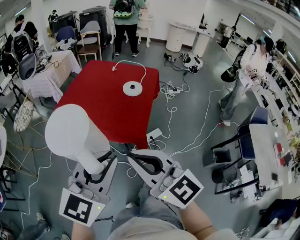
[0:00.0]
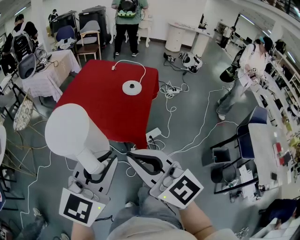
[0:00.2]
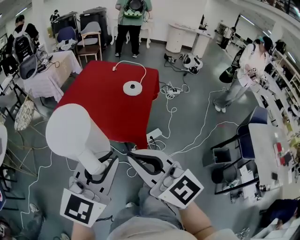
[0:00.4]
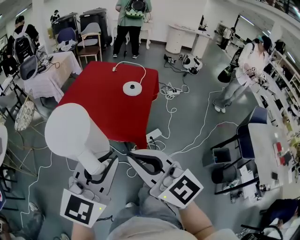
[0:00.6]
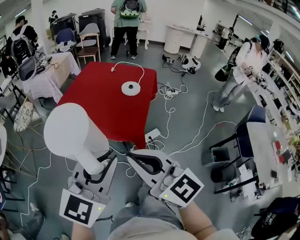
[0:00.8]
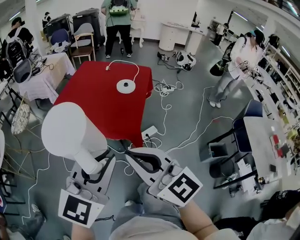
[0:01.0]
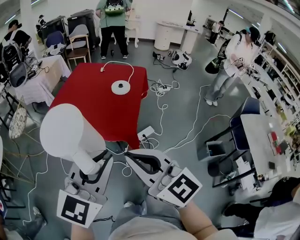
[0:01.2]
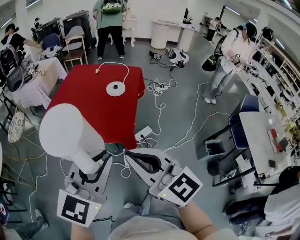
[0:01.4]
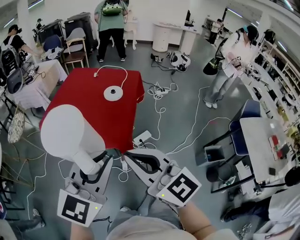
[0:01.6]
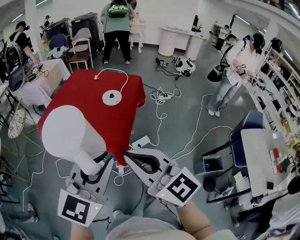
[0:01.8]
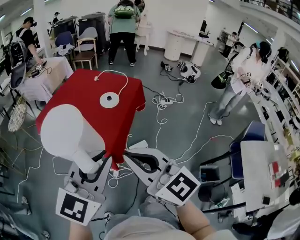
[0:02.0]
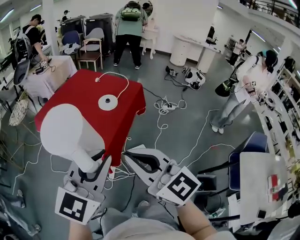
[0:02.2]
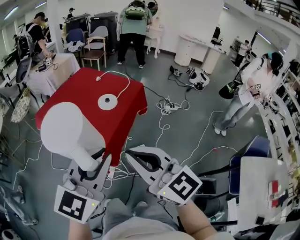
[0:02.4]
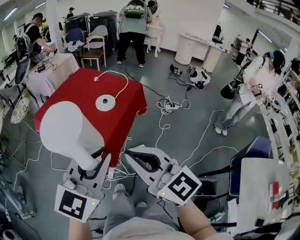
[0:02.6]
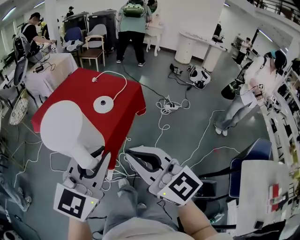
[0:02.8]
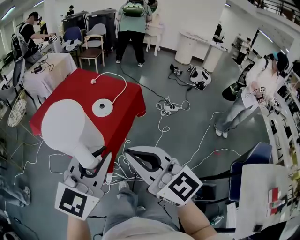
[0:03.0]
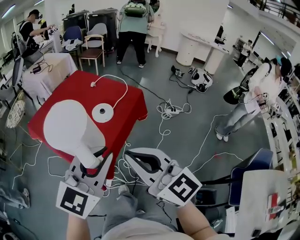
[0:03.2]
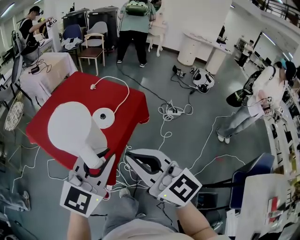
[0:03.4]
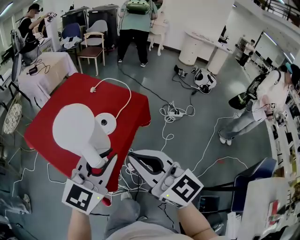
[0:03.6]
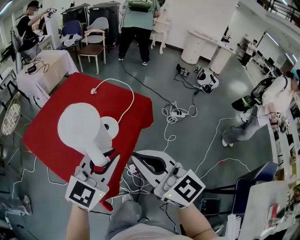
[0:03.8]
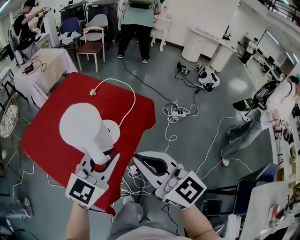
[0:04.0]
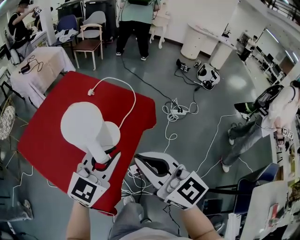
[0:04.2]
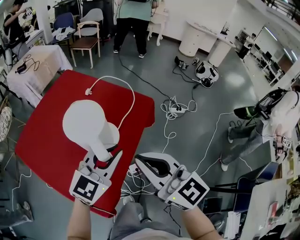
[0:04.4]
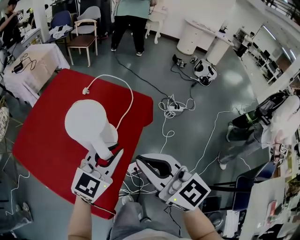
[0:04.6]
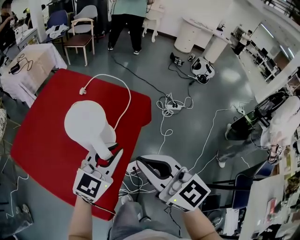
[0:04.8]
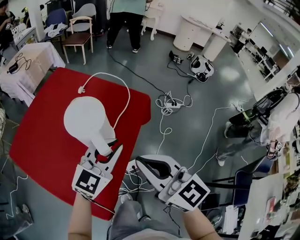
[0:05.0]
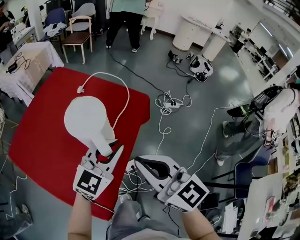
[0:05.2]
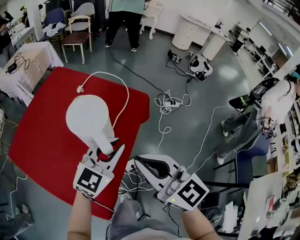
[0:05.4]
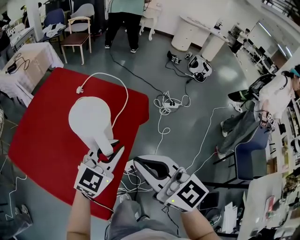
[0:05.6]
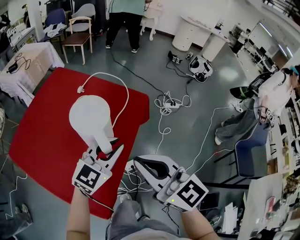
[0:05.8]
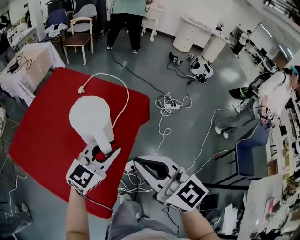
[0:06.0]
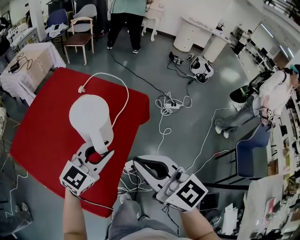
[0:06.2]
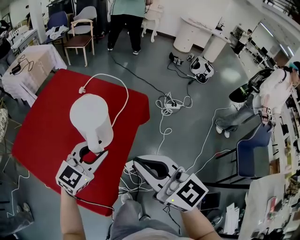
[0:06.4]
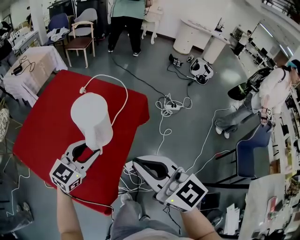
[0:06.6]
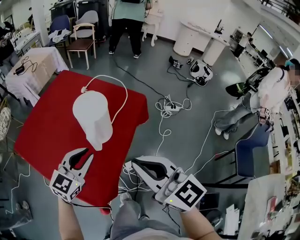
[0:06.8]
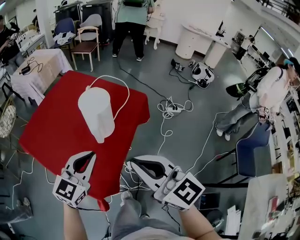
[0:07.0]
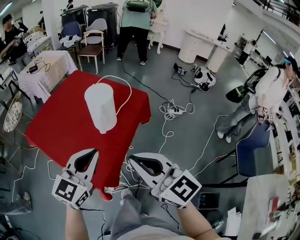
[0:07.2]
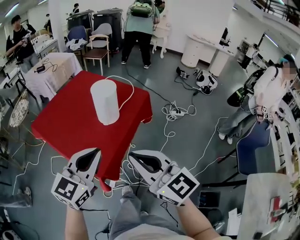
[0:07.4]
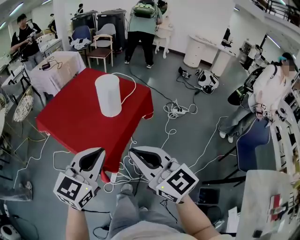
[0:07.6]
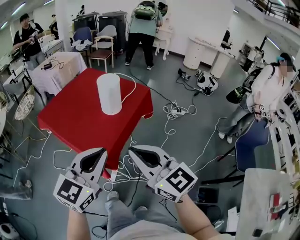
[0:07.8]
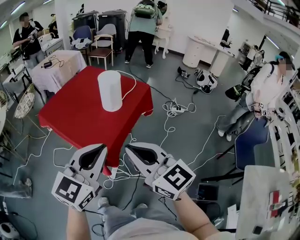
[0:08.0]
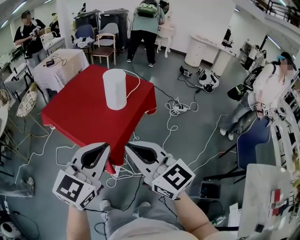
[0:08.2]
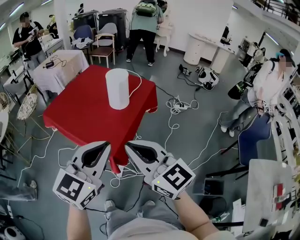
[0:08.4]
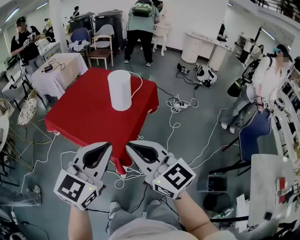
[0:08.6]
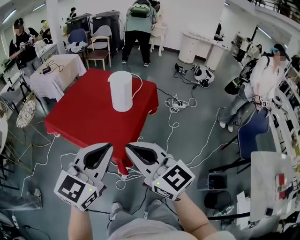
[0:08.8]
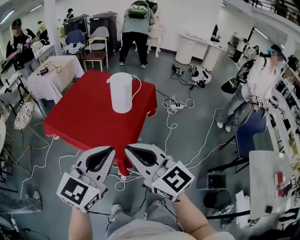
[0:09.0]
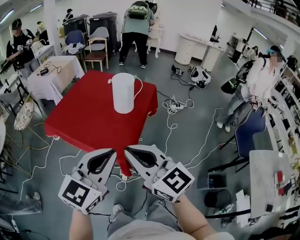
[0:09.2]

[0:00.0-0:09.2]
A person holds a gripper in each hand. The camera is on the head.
0:00.0 to 0:01.6: The two grippers go roughly 10 cm to the right.
0:01.6 to 0:03.0: Both grippers travel together to the right and forward, about 25 cm.
0:03.0 to 0:04.6: The left gripper shifts about 35 cm forward and downward. The right gripper heads forward, covering approximately 30 cm.
0:04.6 to 0:06.2: The grippers stay close to where they were, moving slightly.
0:06.2 to 0:07.6: The right gripper travels backward by approximately 25 cm. Meanwhile the left gripper heads backward and upward, covering some 35 cm, changes its angle by some 20 degrees, and closes.
0:07.6 to 0:09.2: The left gripper heads to the left and backward, covering about 10 cm. Meanwhile the right gripper travels to the left by about 15 cm.

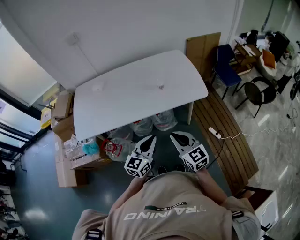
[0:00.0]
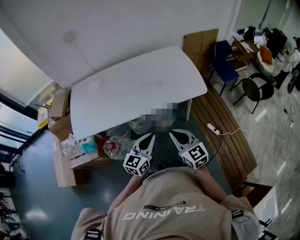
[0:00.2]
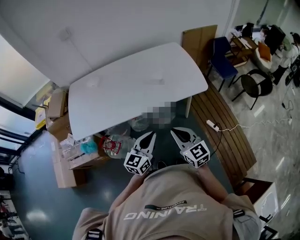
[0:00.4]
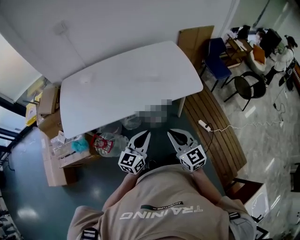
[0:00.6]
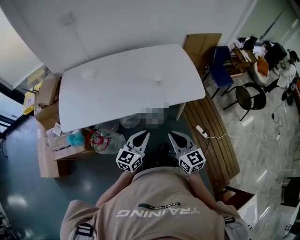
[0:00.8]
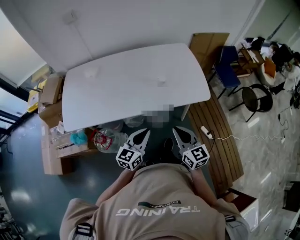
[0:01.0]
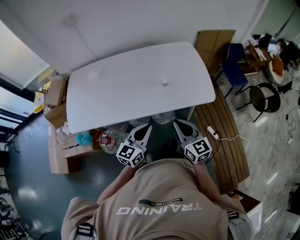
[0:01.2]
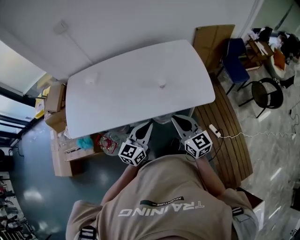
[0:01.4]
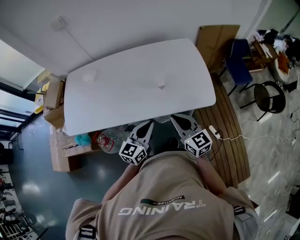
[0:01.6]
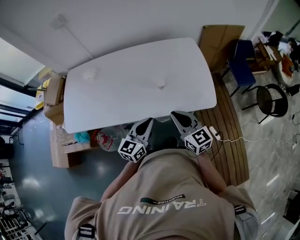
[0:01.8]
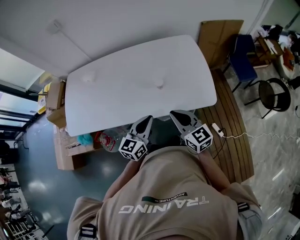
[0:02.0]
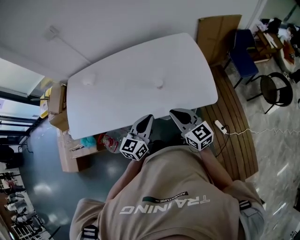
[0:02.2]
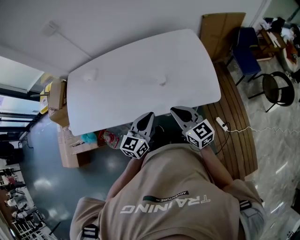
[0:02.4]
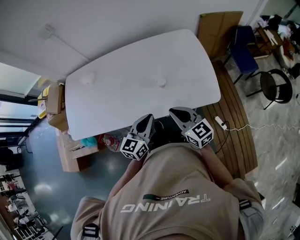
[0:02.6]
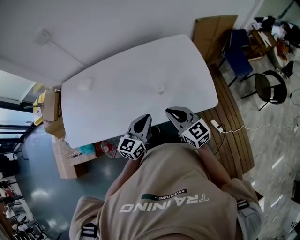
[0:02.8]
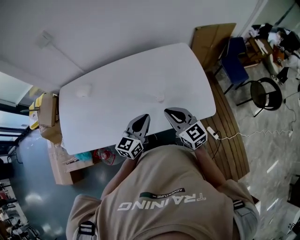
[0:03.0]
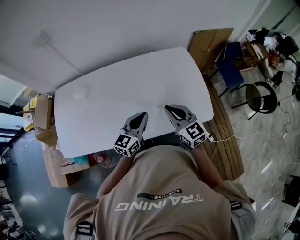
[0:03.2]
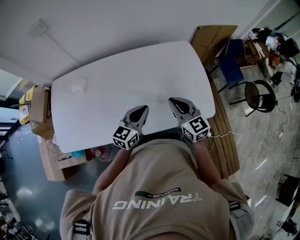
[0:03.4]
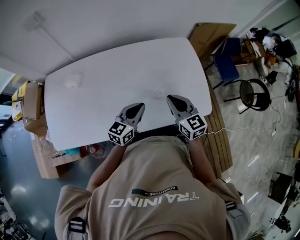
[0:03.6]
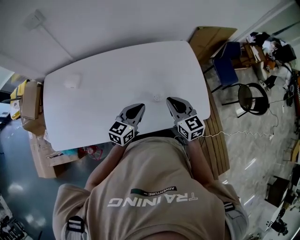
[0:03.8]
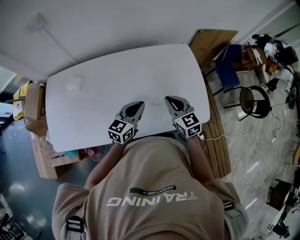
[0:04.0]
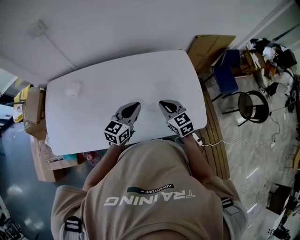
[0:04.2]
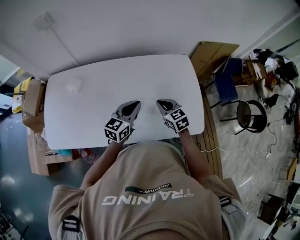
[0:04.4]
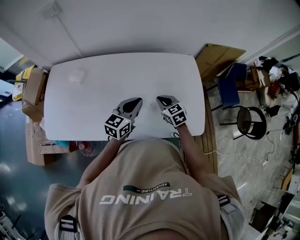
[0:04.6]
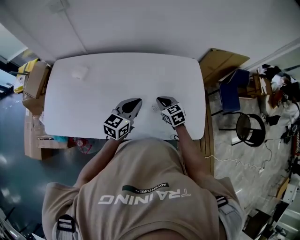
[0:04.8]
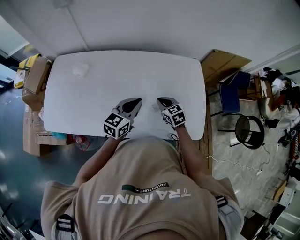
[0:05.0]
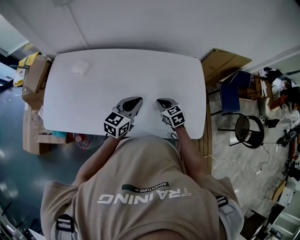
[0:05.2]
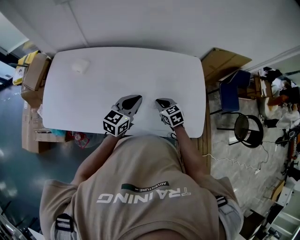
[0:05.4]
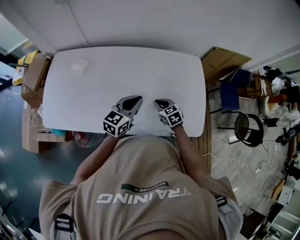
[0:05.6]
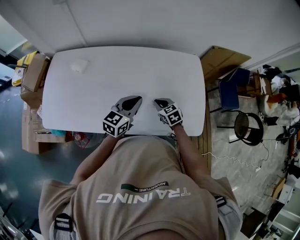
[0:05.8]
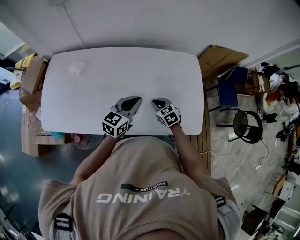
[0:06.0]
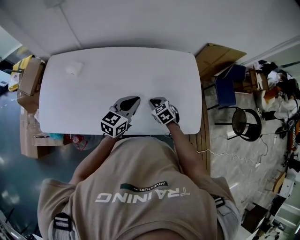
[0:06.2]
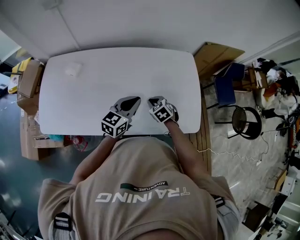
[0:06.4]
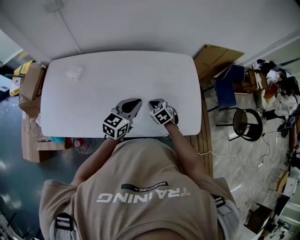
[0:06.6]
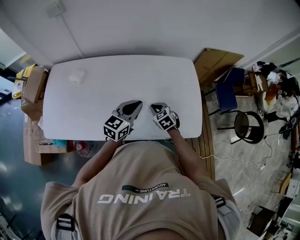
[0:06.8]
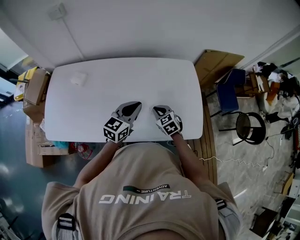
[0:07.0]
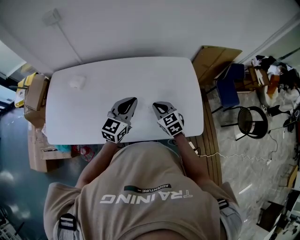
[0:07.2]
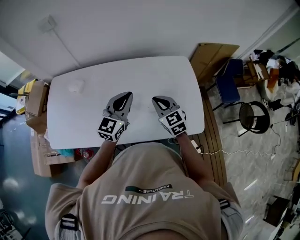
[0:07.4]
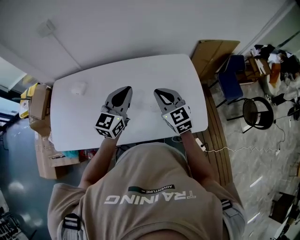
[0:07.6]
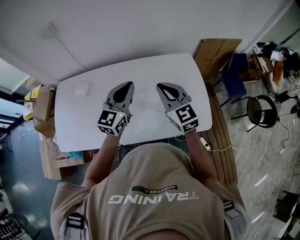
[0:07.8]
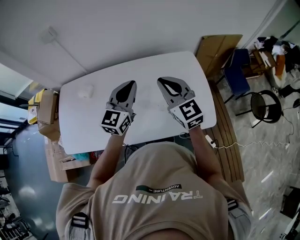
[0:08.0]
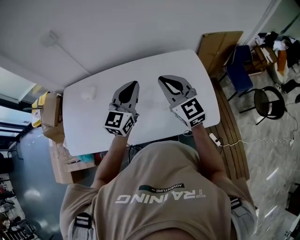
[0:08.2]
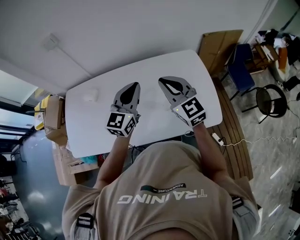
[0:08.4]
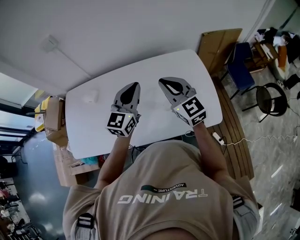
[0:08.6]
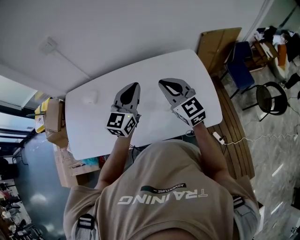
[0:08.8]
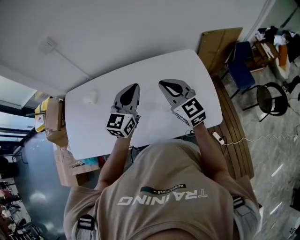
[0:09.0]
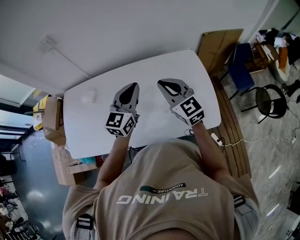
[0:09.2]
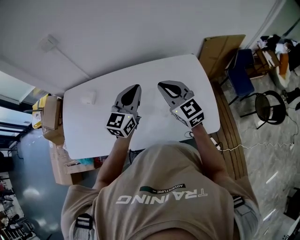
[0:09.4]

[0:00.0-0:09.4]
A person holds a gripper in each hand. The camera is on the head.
0:00.0 to 0:01.6: Both grippers move forward, some 20 cm.
0:01.6 to 0:03.2: Both grippers move forward, roughly 20 cm.
0:03.2 to 0:04.8: The right gripper moves downward and forward, approximately 20 cm, and rotates about 30 degrees; the left gripper heads forward, covering about 10 cm.
0:04.8 to 0:06.2: The right gripper moves about 5 cm.
0:06.2 to 0:07.8: The right gripper heads upward, covering approximately 25 cm, and tilts its fingers about 40 degrees upward, while the left gripper is displaced upward by some 15 cm, and rotates some 20 degrees.
0:07.8 to 0:09.4: The grippers make only small movements.

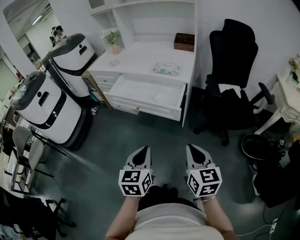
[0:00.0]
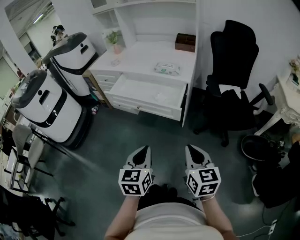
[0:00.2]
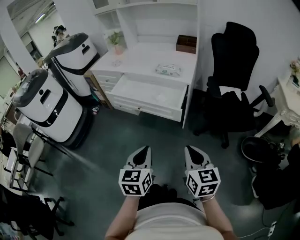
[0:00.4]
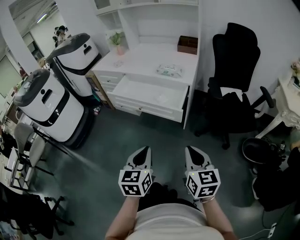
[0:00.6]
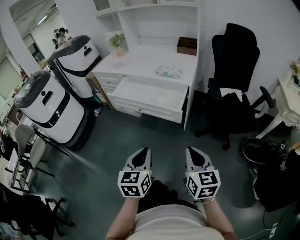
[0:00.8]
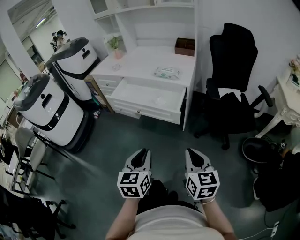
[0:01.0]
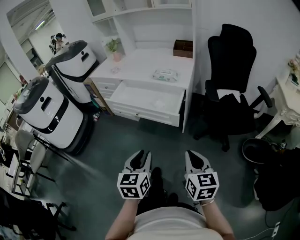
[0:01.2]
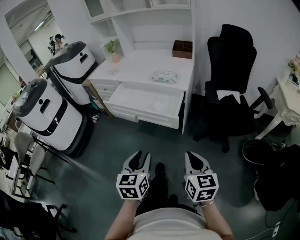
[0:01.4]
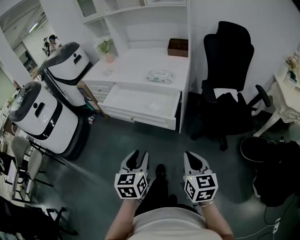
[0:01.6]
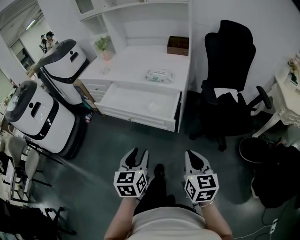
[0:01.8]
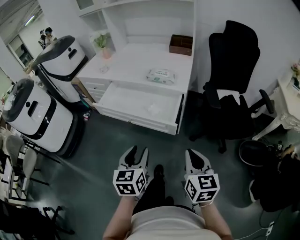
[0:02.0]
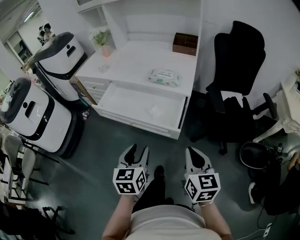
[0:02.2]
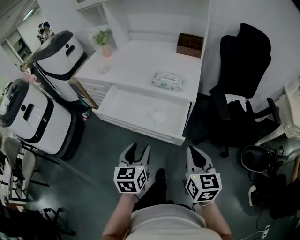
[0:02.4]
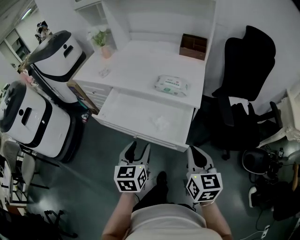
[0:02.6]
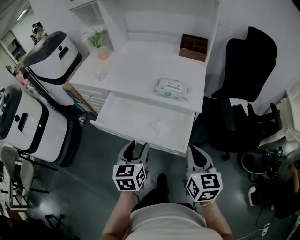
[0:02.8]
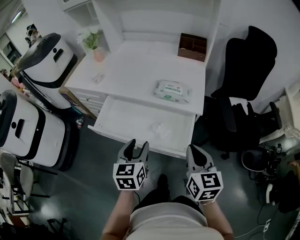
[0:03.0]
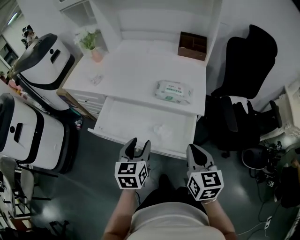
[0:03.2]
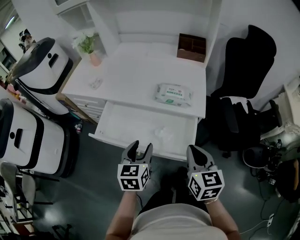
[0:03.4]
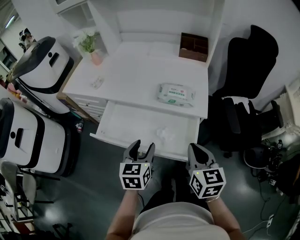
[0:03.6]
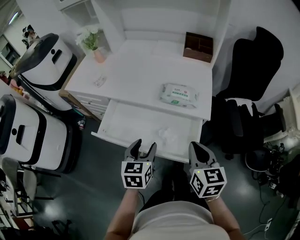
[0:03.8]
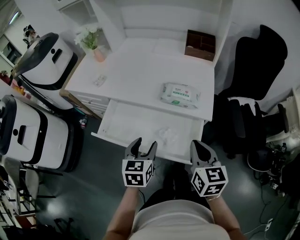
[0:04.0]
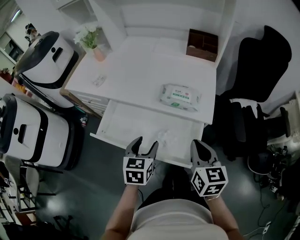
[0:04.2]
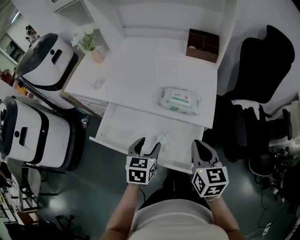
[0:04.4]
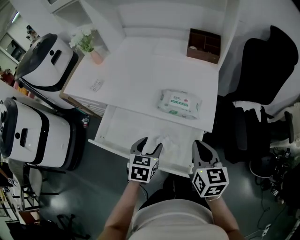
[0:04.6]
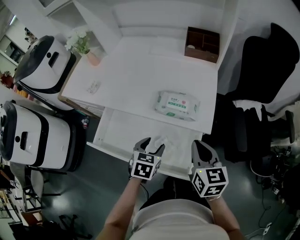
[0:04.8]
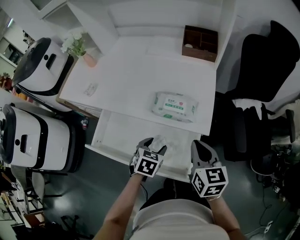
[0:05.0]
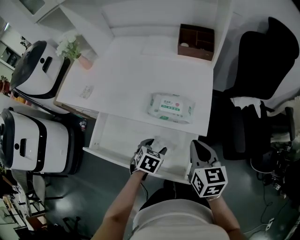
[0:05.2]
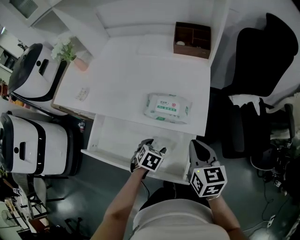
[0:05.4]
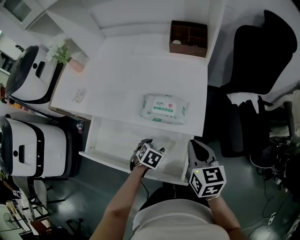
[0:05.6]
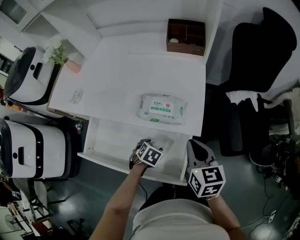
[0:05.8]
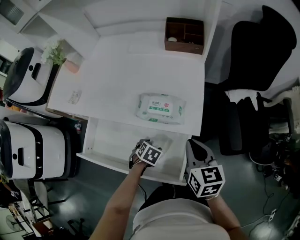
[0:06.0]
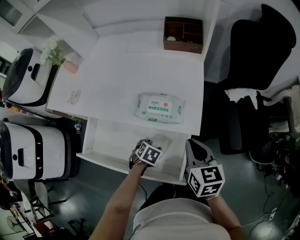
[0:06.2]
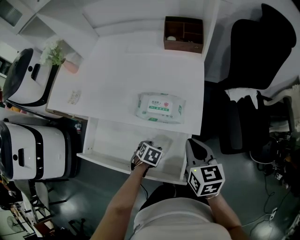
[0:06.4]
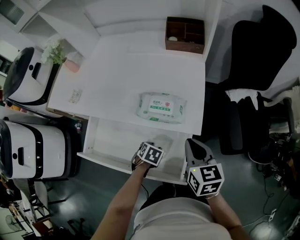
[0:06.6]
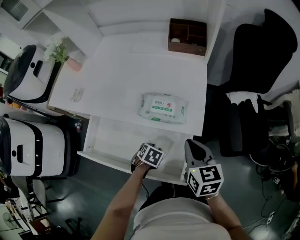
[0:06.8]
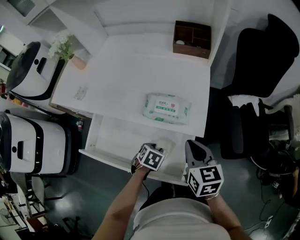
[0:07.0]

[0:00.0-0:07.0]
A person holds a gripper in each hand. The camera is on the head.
0:00.0 to 0:01.4: The left gripper opens its fingers.
0:01.4 to 0:02.8: The two grippers go some 30 cm forward.
0:02.8 to 0:04.2: The grippers both shift forward by some 10 cm.
0:04.2 to 0:05.6: The left gripper is displaced downward, to the right and forward by roughly 20 cm, and tilts its fingers some 30 degrees downward. The right gripper goes roughly 10 cm forward and to the right.
0:05.6 to 0:07.0: The left gripper closes.
